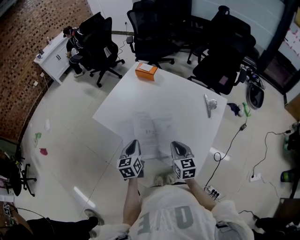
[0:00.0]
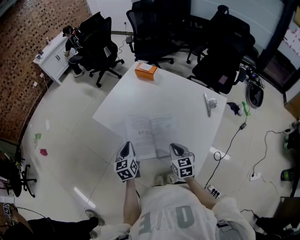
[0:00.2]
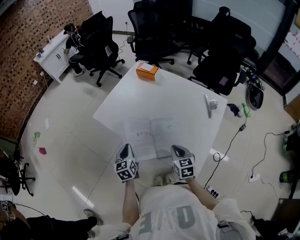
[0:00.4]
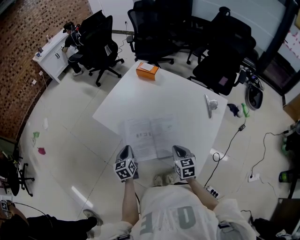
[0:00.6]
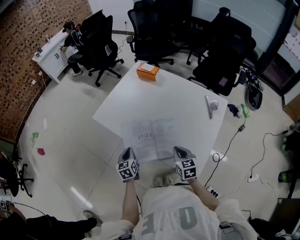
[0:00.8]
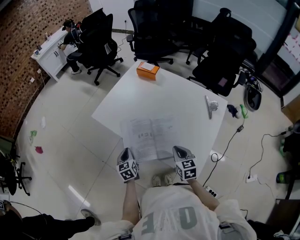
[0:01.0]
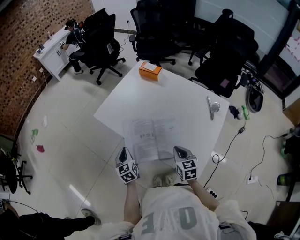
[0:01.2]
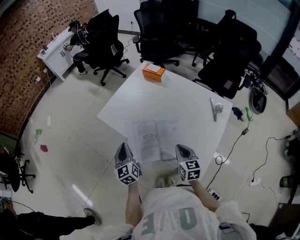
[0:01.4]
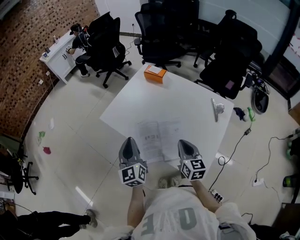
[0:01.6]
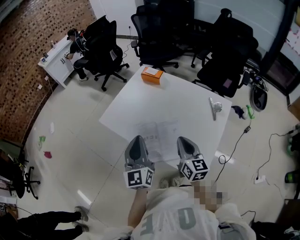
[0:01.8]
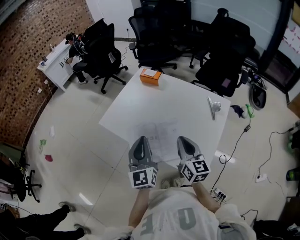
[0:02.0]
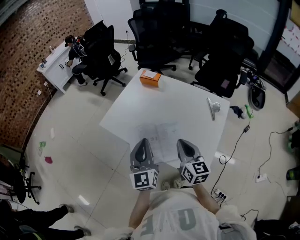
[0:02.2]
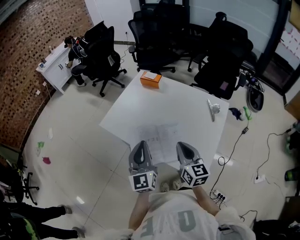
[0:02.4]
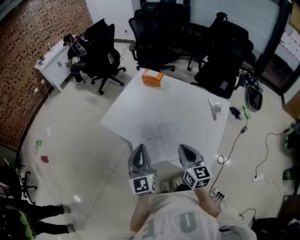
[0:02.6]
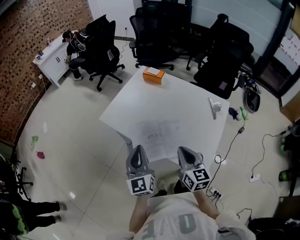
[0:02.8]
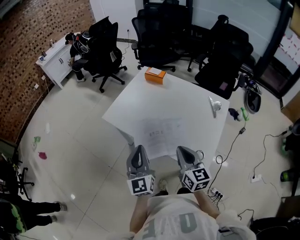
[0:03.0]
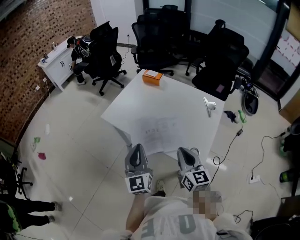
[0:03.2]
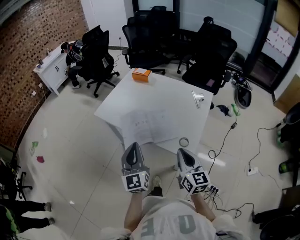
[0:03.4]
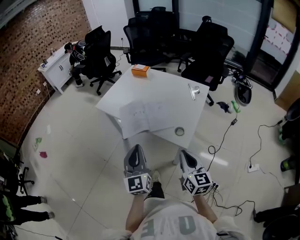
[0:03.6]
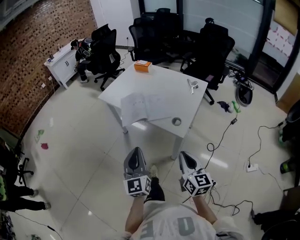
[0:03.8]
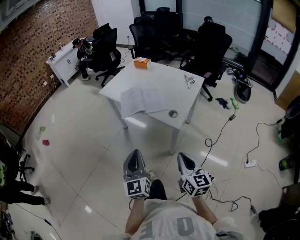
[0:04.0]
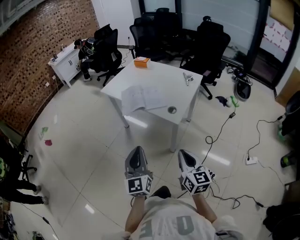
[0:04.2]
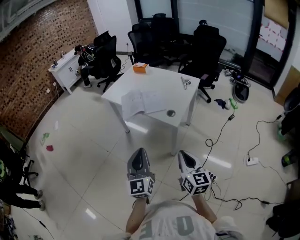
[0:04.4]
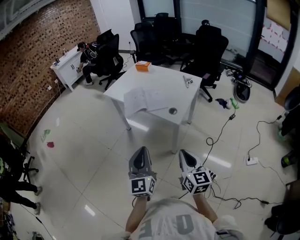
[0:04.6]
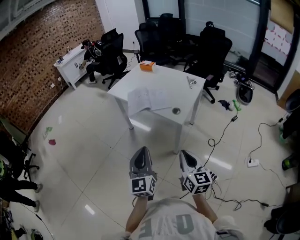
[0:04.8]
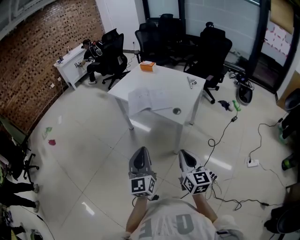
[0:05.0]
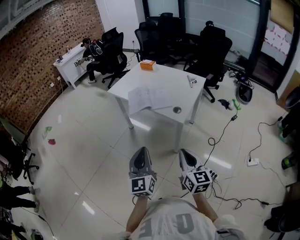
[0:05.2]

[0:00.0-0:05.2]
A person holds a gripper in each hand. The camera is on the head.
0:00.0 to 0:01.8: The left gripper shifts roughly 15 cm upward, and angles its fingers upward, by about 30 degrees; the right gripper travels upward by some 10 cm.
0:01.8 to 0:03.4: The two grippers go some 15 cm backward.
0:03.4 to 0:05.2: Both grippers move backward, approximately 30 cm.

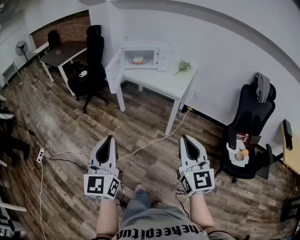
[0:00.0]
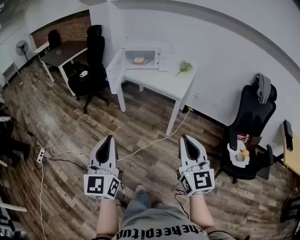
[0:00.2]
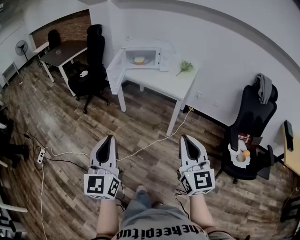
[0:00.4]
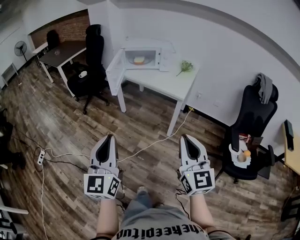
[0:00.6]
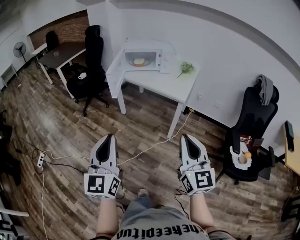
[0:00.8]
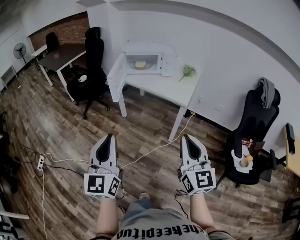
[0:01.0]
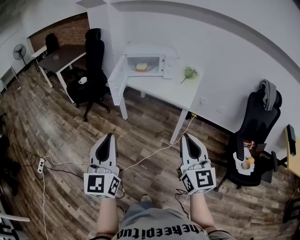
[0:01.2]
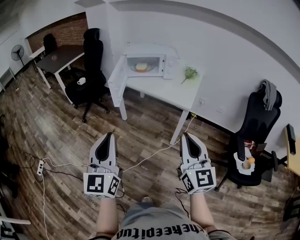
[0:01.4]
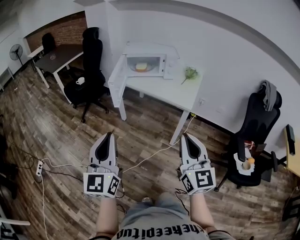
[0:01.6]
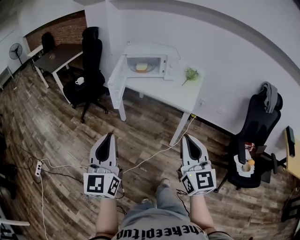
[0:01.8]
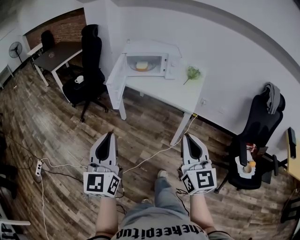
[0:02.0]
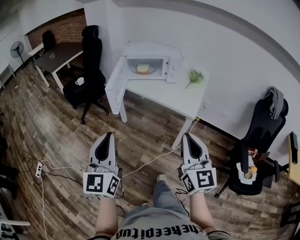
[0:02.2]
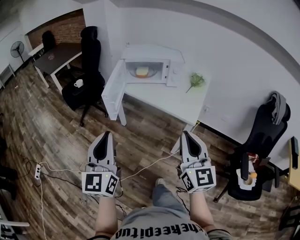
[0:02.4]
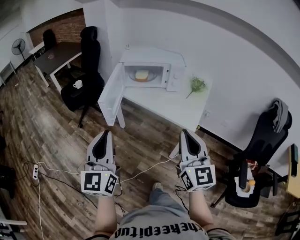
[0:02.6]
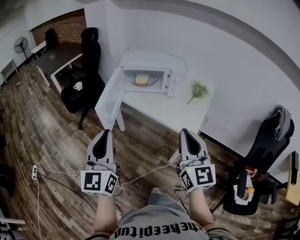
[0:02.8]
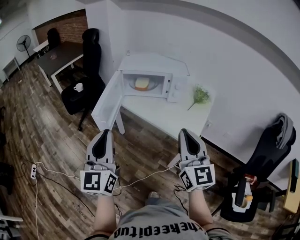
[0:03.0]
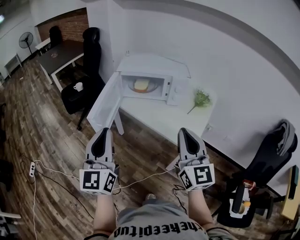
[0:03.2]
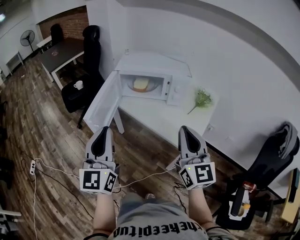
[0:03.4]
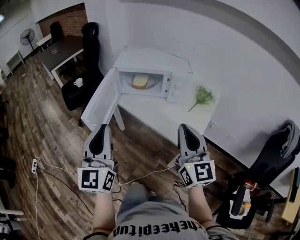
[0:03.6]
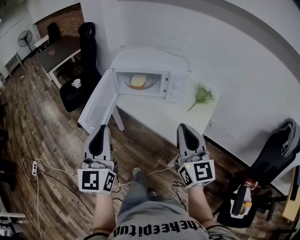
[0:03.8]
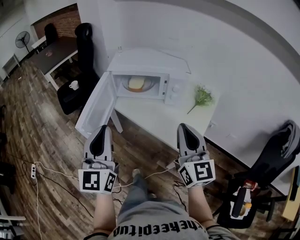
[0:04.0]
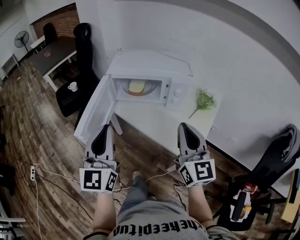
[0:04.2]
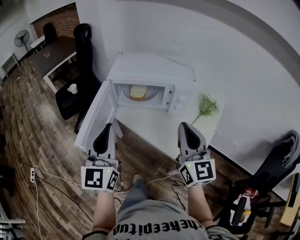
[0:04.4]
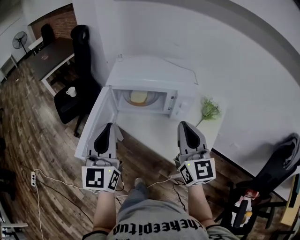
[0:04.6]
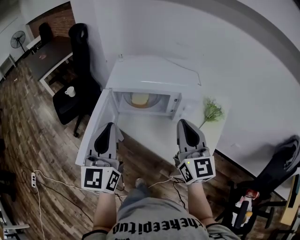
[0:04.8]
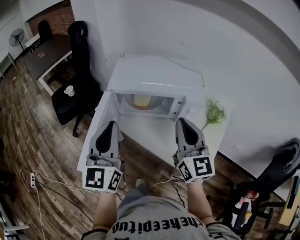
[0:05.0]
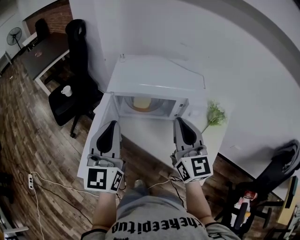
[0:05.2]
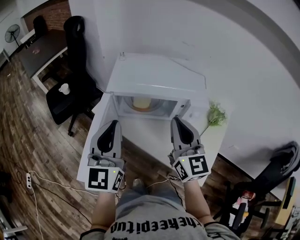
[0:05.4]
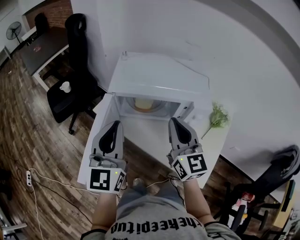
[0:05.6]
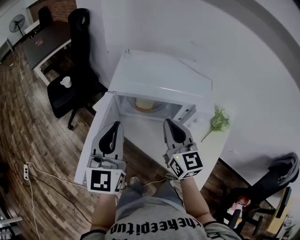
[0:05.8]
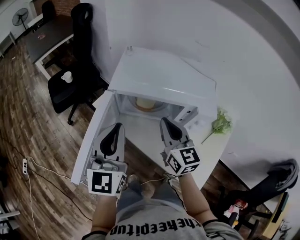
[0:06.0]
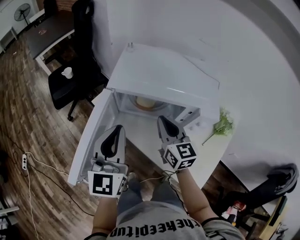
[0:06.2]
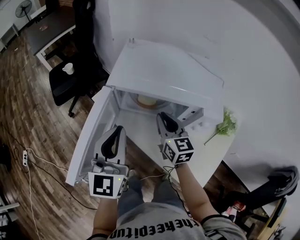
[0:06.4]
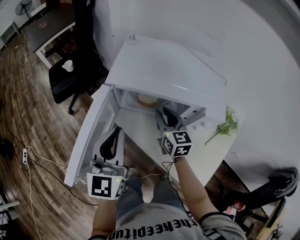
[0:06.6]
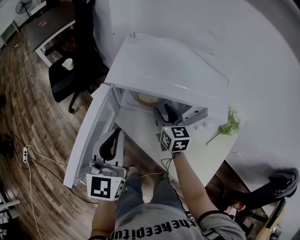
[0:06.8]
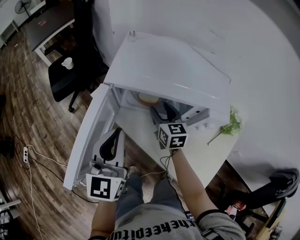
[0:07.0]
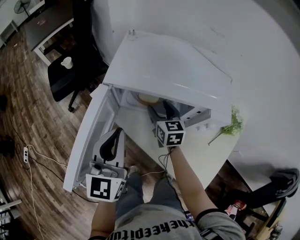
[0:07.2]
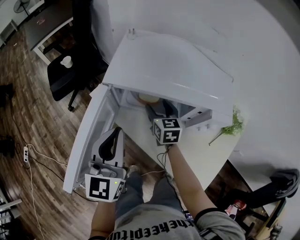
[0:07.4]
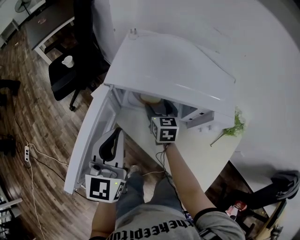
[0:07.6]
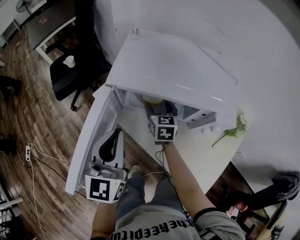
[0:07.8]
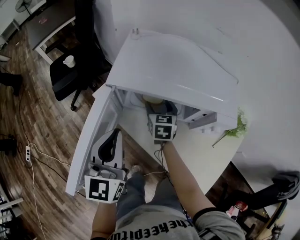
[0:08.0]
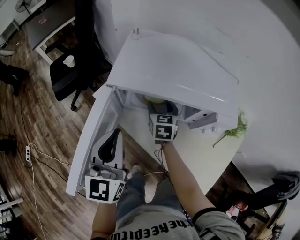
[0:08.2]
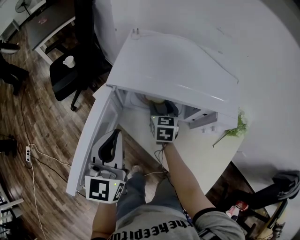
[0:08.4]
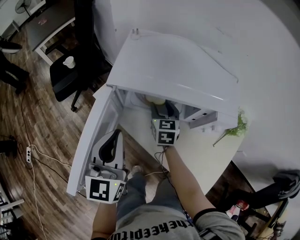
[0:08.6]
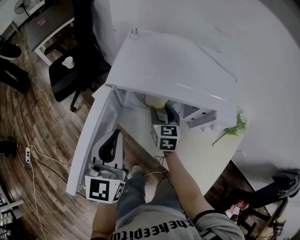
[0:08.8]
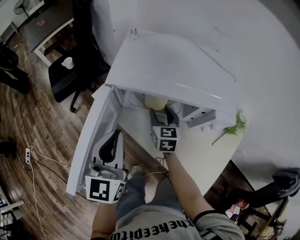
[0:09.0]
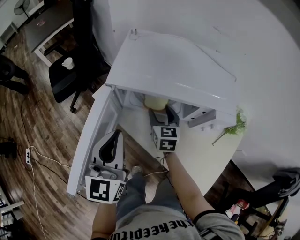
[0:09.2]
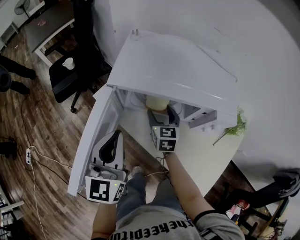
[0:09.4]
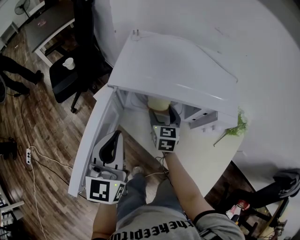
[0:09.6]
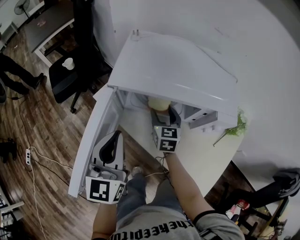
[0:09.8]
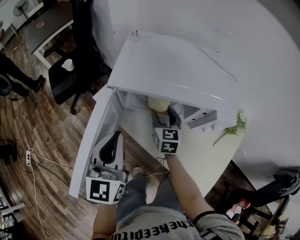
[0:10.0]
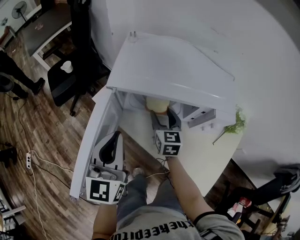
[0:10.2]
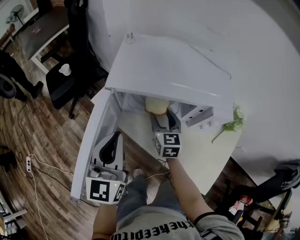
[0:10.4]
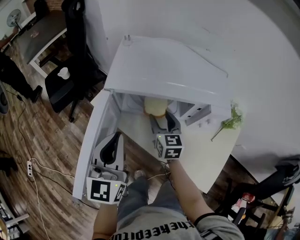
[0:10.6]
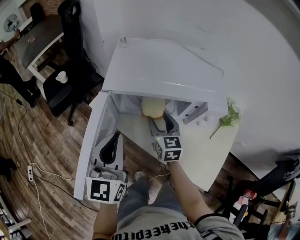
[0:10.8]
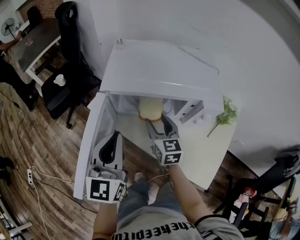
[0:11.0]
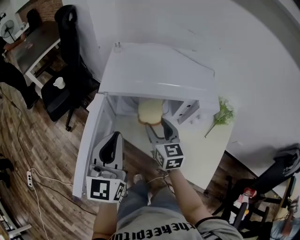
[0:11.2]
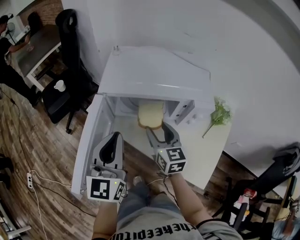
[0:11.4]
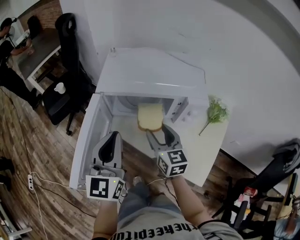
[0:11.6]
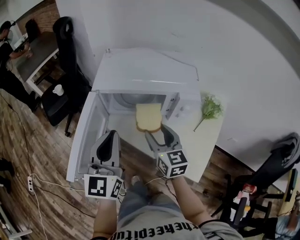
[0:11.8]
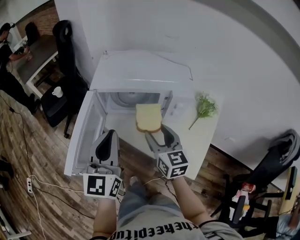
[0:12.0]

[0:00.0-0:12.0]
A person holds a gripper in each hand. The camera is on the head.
0:00.0 to 0:01.6: The grippers both shift forward and to the left by some 15 cm.
0:01.6 to 0:03.0: Both grippers travel together forward, approximately 30 cm.
0:03.0 to 0:04.4: The two grippers go roughly 20 cm forward.
0:04.4 to 0:06.0: The right gripper moves forward, downward and to the left, some 25 cm. The left gripper is displaced forward by some 15 cm.
0:06.0 to 0:07.6: The right gripper goes some 20 cm downward and forward, changes its angle by approximately 20 degrees, and opens up; the left gripper goes approximately 5 cm downward.
0:07.6 to 0:10.4: The grippers stay close to where they were, moving slightly.
0:10.4 to 0:12.0: The left gripper goes roughly 15 cm backward, upward and to the right. Meanwhile the right gripper heads backward and upward, covering approximately 20 cm.

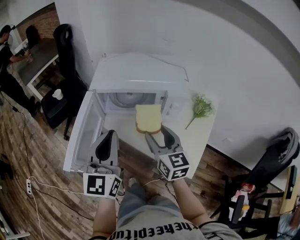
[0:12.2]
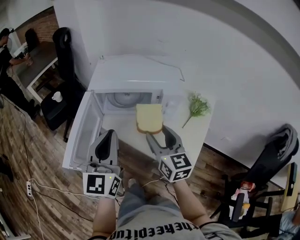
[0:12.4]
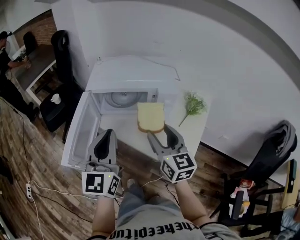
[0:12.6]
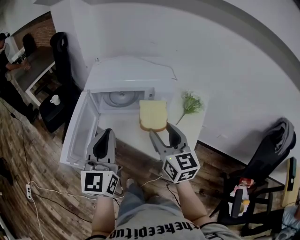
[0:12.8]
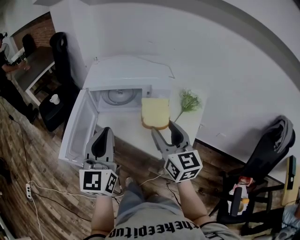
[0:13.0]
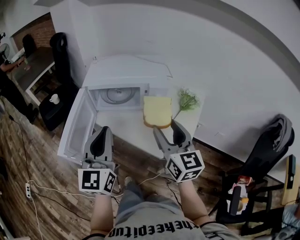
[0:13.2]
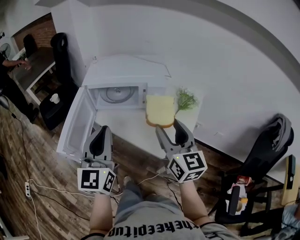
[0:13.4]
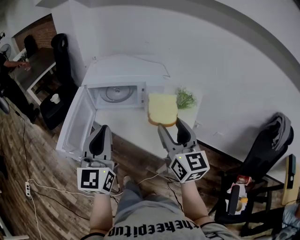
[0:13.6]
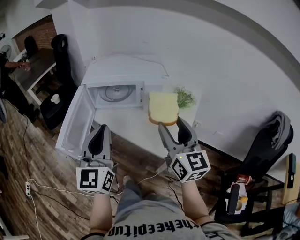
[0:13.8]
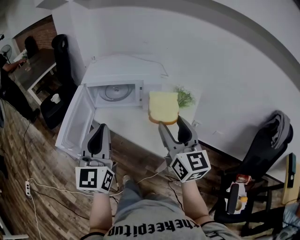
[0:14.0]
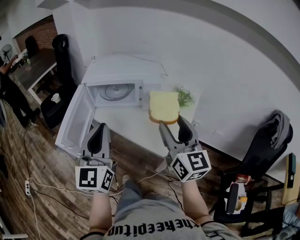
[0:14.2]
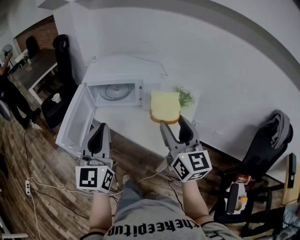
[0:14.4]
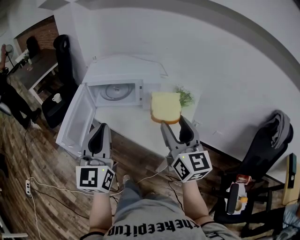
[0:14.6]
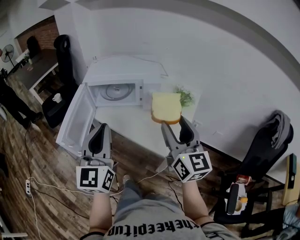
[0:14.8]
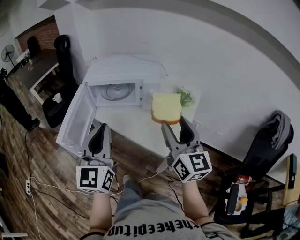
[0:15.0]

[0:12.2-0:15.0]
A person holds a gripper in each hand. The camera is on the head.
0:12.2 to 0:13.6: The left gripper moves backward and to the right, approximately 10 cm; the right gripper shifts about 20 cm backward, to the right and upward.
0:13.6 to 0:15.0: The grippers stay close to where they were, moving slightly.

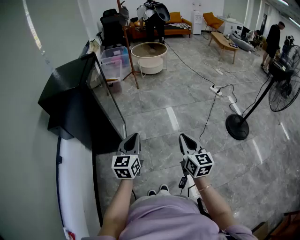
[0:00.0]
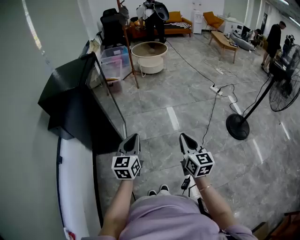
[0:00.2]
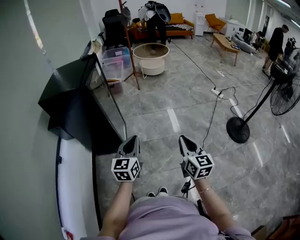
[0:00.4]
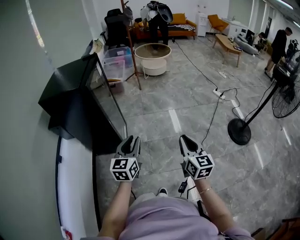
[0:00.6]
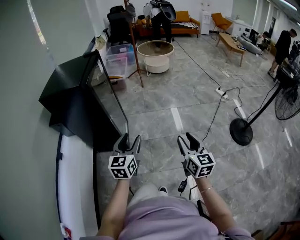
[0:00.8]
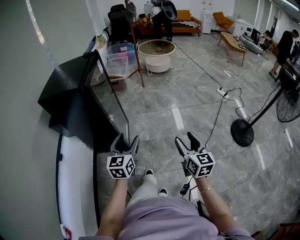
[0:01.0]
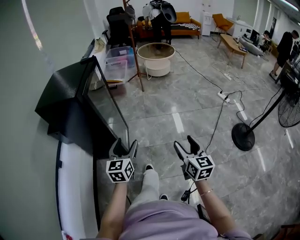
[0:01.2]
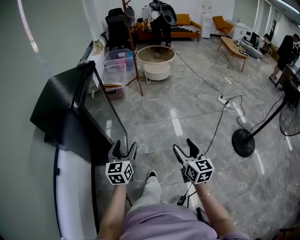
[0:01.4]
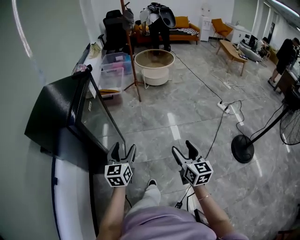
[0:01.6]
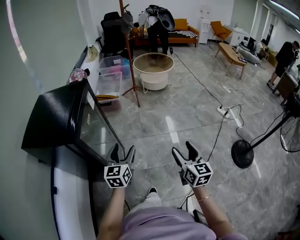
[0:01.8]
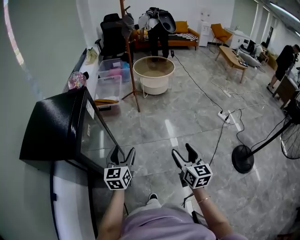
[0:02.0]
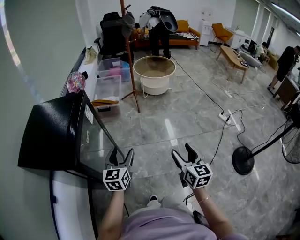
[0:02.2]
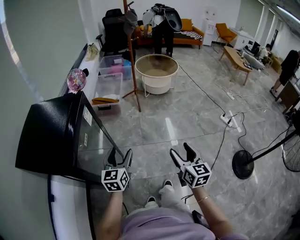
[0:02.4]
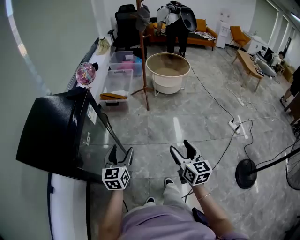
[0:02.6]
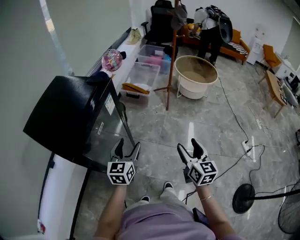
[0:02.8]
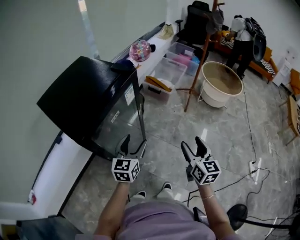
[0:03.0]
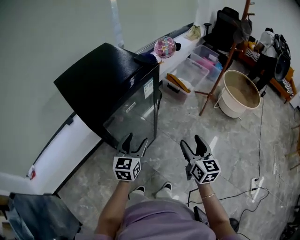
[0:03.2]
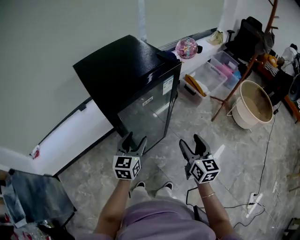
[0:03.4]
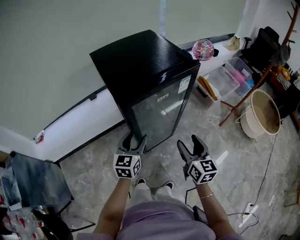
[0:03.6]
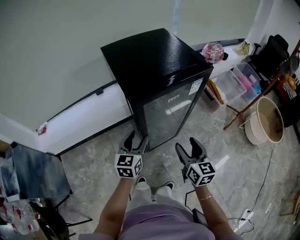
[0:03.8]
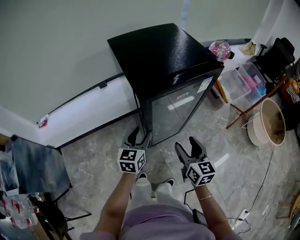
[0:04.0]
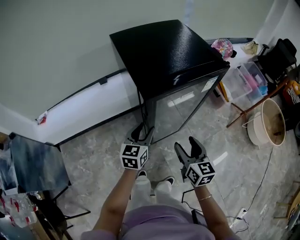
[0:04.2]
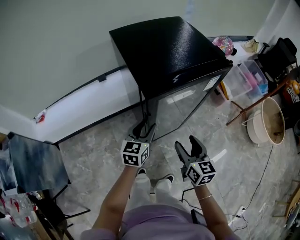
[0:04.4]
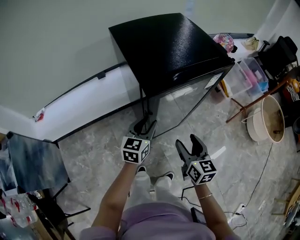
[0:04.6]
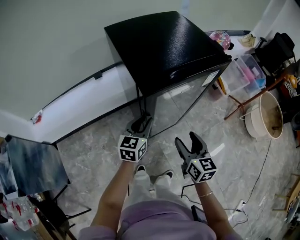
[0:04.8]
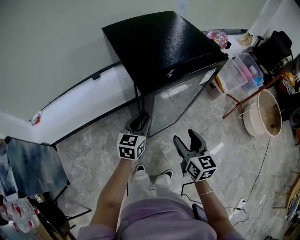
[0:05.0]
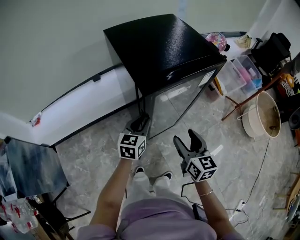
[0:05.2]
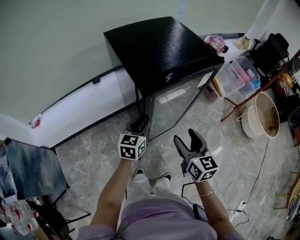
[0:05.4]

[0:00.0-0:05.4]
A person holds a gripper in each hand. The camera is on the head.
0:00.0 to 0:01.4: The two grippers go some 20 cm forward. The left gripper opens its fingers. The right gripper opens its fingers.
0:01.4 to 0:02.8: Both grippers move forward, approximately 35 cm.
0:02.8 to 0:04.0: The left gripper changes place by approximately 25 cm, and turns by some 40 degrees. Meanwhile the right gripper shifts by about 25 cm, and turns by some 50 degrees.
0:04.0 to 0:05.4: The left gripper closes its fingers.
